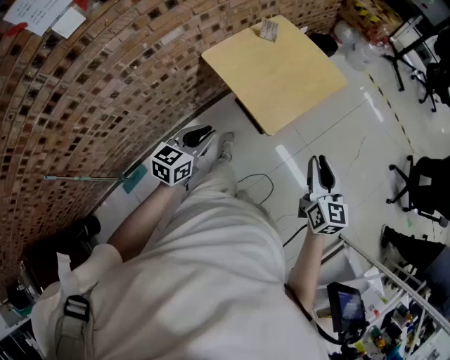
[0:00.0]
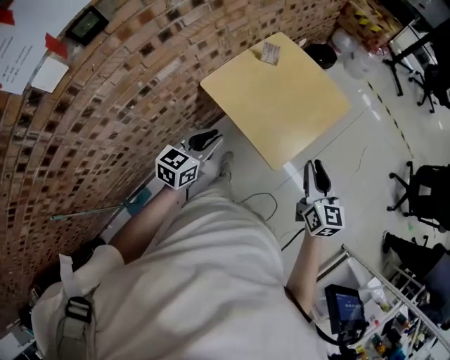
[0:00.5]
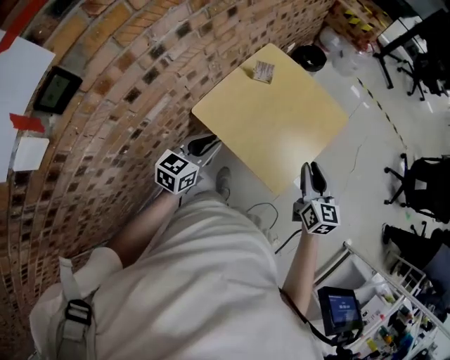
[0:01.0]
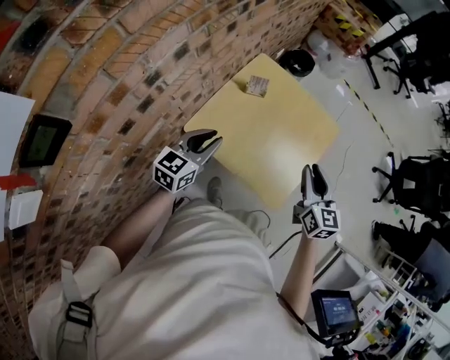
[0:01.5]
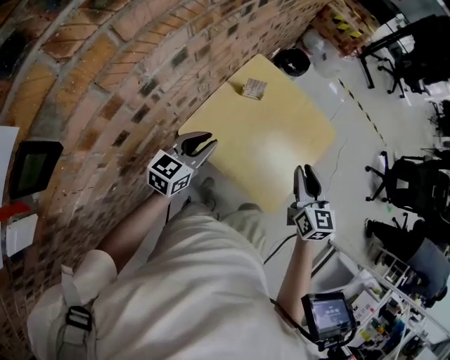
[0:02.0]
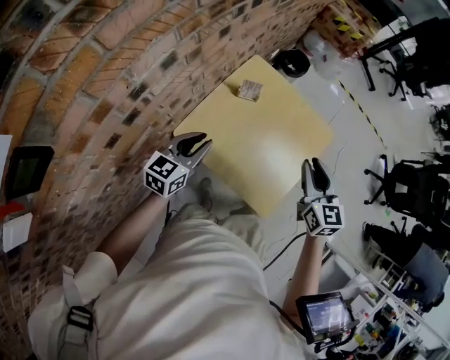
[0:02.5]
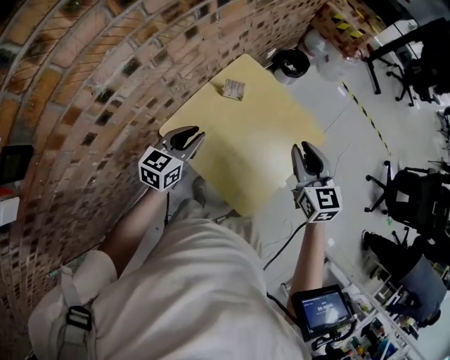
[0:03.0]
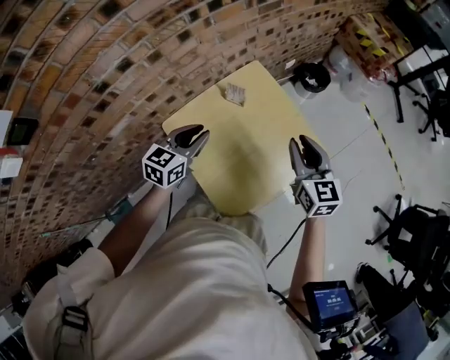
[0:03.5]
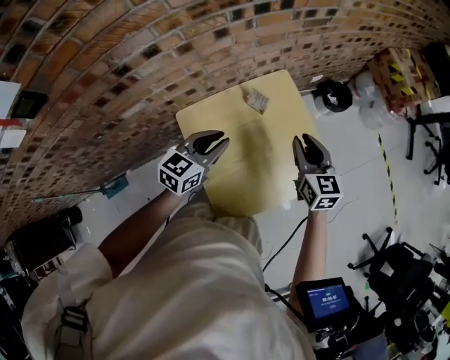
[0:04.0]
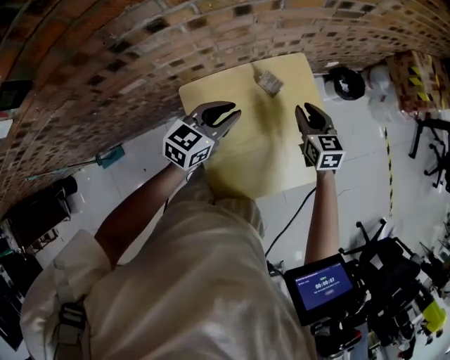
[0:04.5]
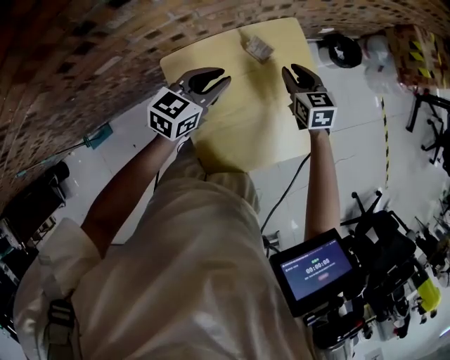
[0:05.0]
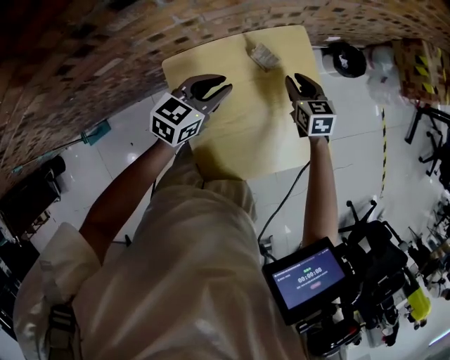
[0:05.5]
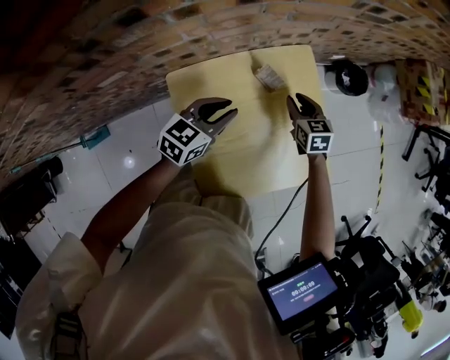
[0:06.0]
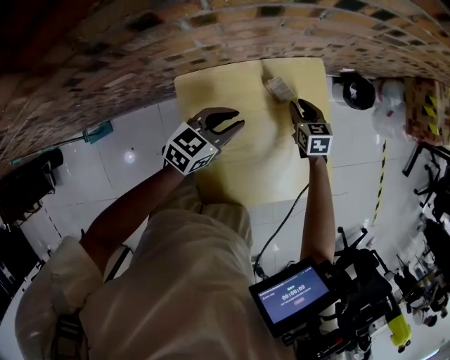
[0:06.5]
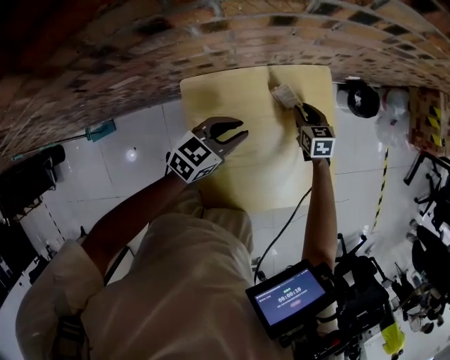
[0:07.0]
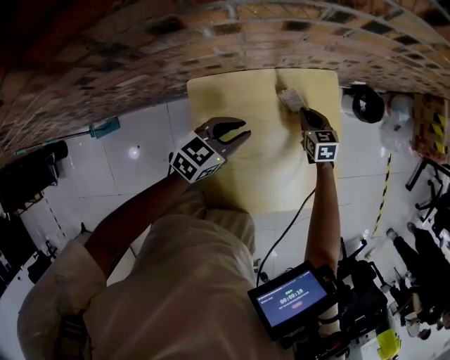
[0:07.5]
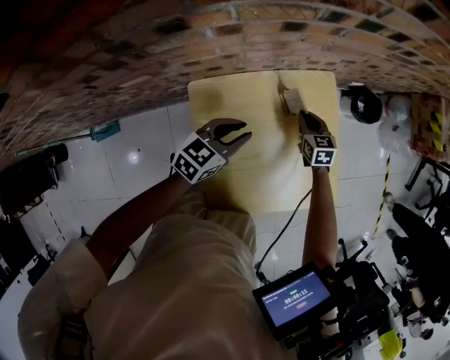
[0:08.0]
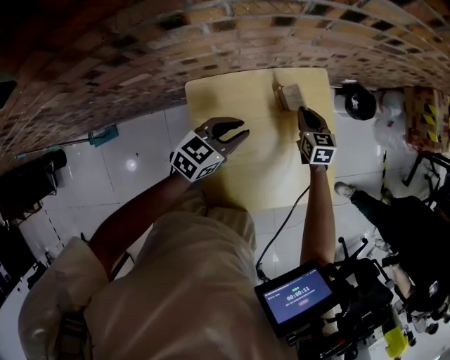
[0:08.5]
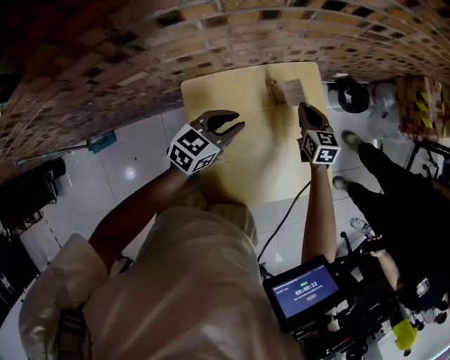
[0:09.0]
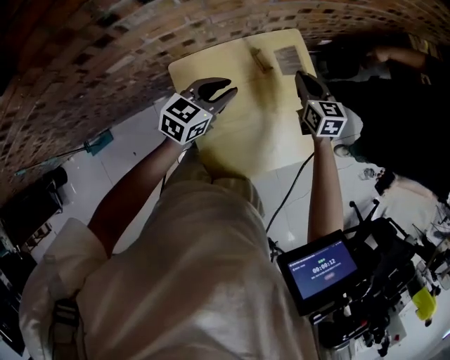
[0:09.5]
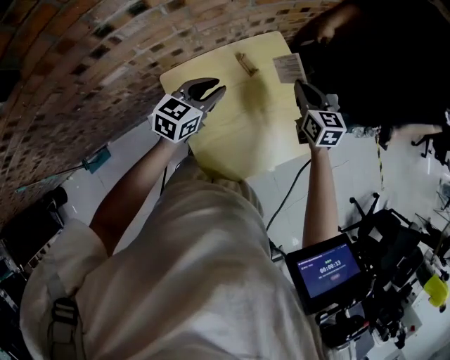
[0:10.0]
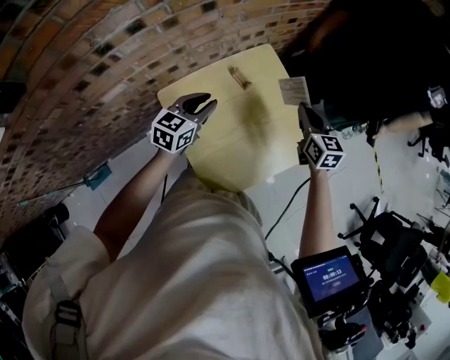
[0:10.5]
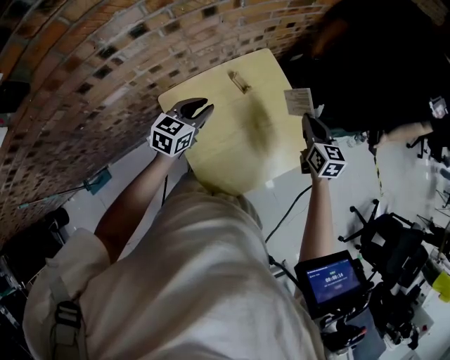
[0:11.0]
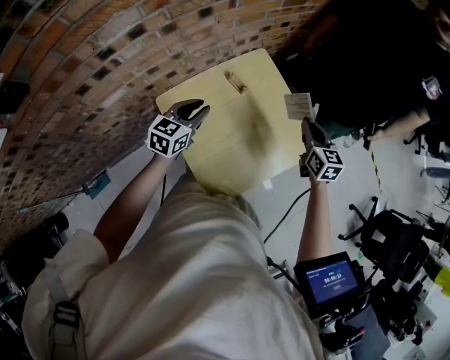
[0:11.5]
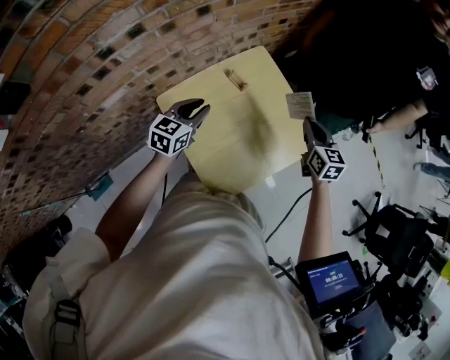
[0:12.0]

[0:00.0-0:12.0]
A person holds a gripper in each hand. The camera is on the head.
0:00.0 to 0:02.0: Both grippers move forward and to the left, roughly 40 cm.
0:02.0 to 0:04.0: The left gripper shifts by some 15 cm, and swivels roughly 30 degrees; the right gripper changes place by some 25 cm, and rotates approximately 40 degrees.
0:04.0 to 0:06.0: The right gripper is displaced downward and forward by roughly 25 cm, and changes its angle by approximately 20 degrees. The left gripper is displaced downward and forward by some 10 cm.
0:06.0 to 0:08.0: The right gripper goes roughly 5 cm downward, and closes up.
0:08.0 to 0:10.0: The left gripper travels upward by some 10 cm, while the right gripper shifts roughly 25 cm upward, to the right and backward, and turns by approximately 20 degrees.
0:10.0 to 0:12.0: The right gripper is displaced to the right and backward by about 10 cm.

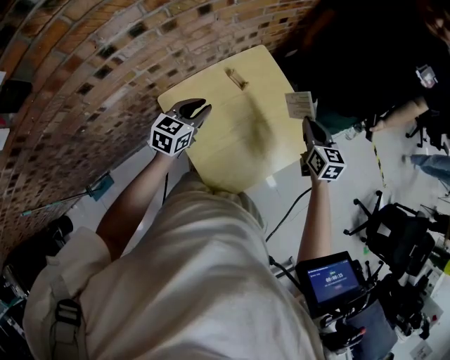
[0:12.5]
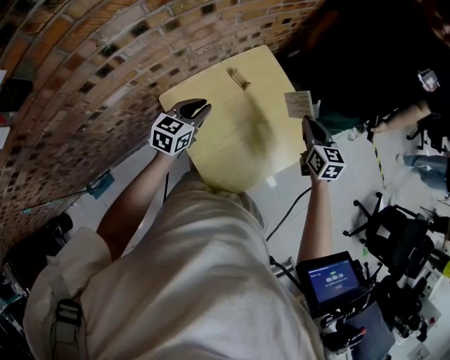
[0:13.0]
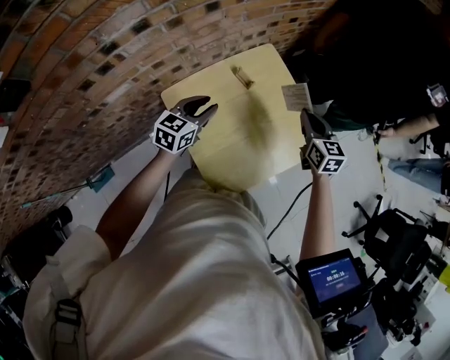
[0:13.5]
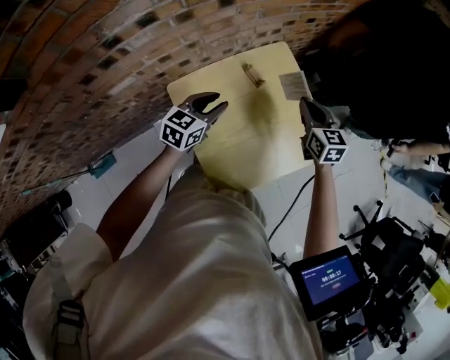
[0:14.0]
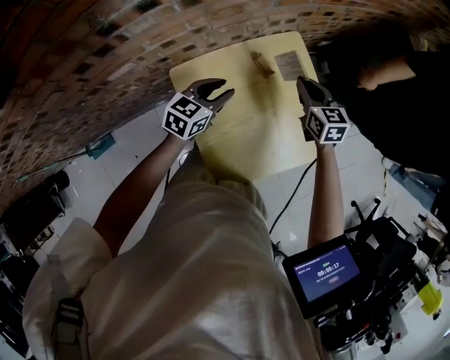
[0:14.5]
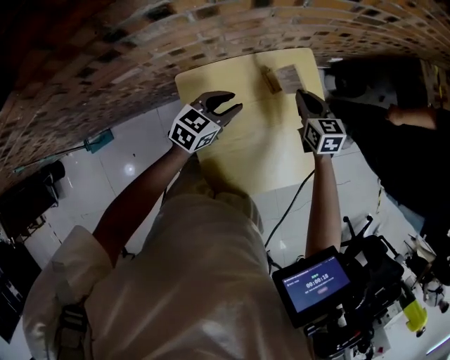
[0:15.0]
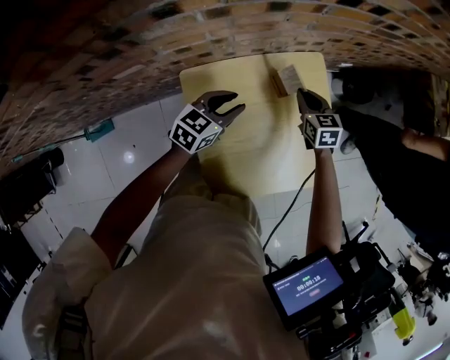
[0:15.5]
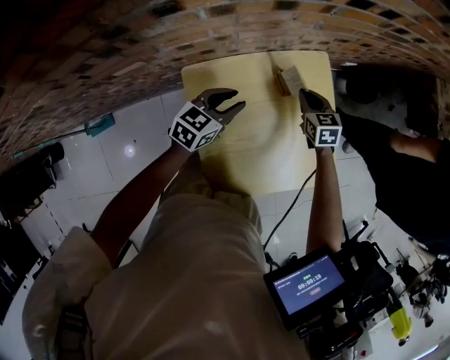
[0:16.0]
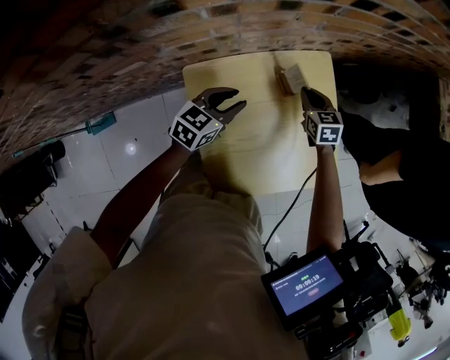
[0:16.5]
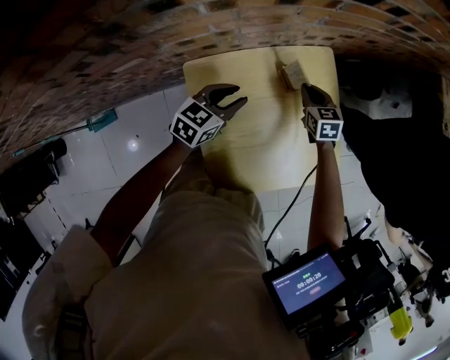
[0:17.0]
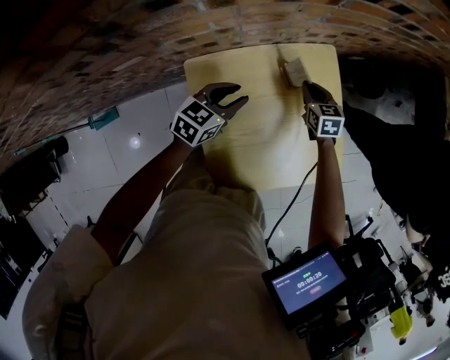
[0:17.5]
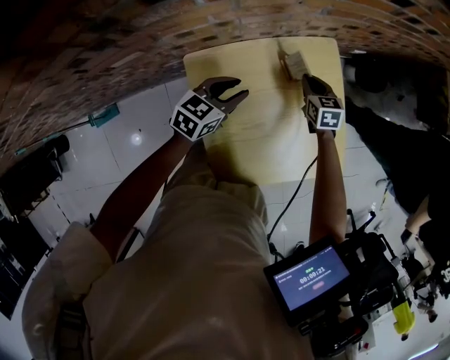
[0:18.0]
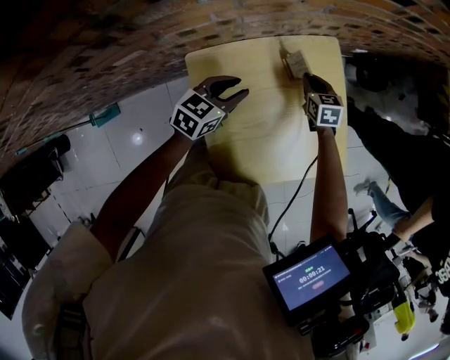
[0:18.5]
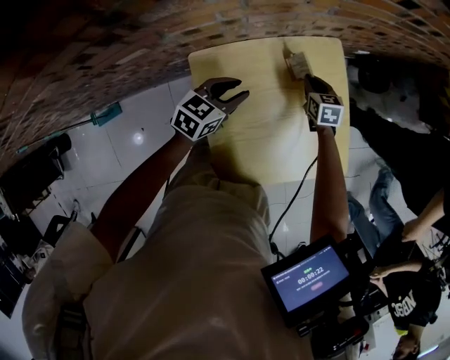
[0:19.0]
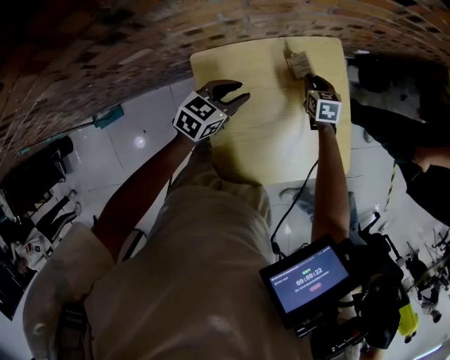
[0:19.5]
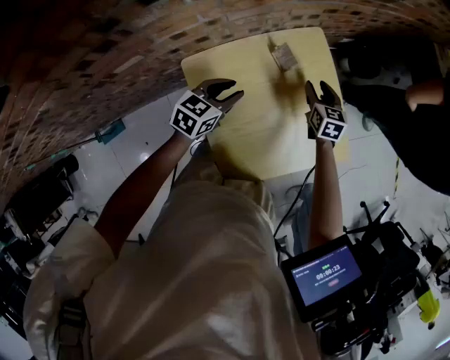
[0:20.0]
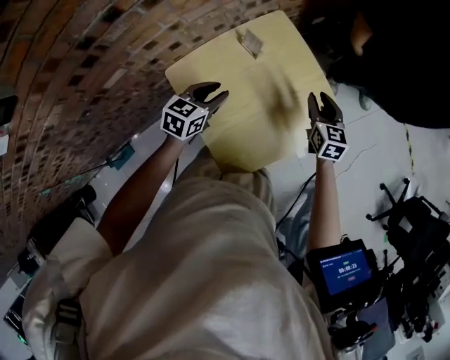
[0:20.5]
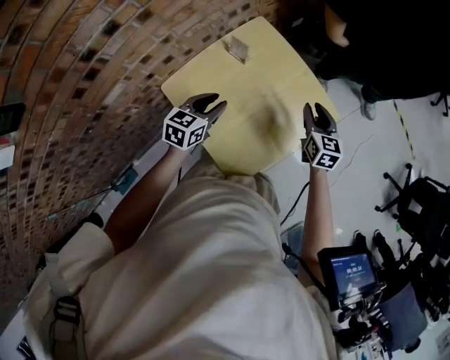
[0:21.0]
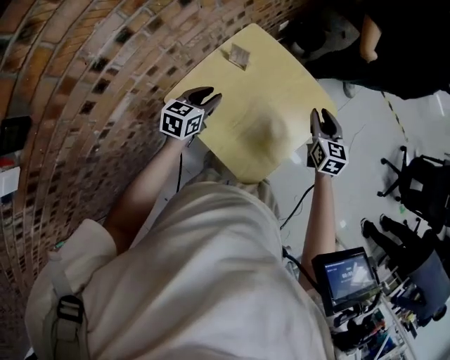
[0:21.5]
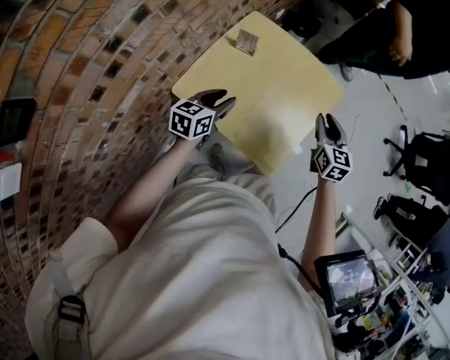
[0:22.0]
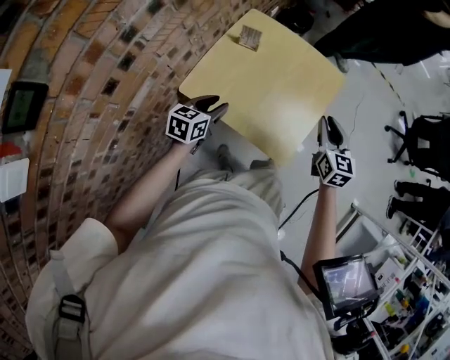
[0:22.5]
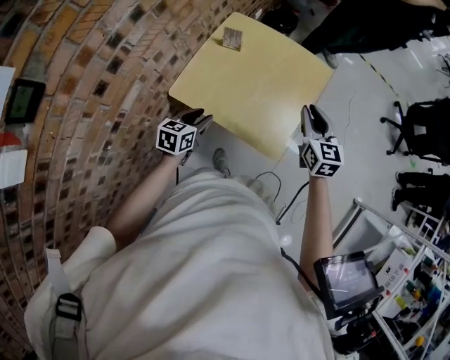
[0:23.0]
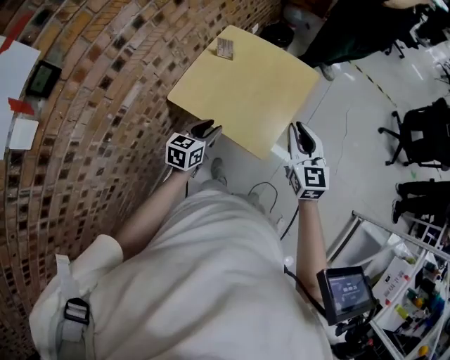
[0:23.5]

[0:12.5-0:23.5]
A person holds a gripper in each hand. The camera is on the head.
0:12.5 to 0:14.5: The right gripper is displaced to the left and forward by about 20 cm, and rotates roughly 20 degrees. Meanwhile the left gripper ends up some 5 cm from where it was.
0:14.5 to 0:16.0: The right gripper shifts some 10 cm downward.
0:16.0 to 0:18.0: The grippers stay close to where they were, moving slightly.
0:18.0 to 0:20.0: The right gripper heads to the right, covering roughly 5 cm, and opens.
0:20.0 to 0:21.5: The left gripper moves upward, some 5 cm, and travels to the right and back again, approximately 10 cm each way; the right gripper moves backward, to the right and upward, some 30 cm, and changes its angle by some 30 degrees.
0:21.5 to 0:23.5: Both grippers move backward, roughly 25 cm.

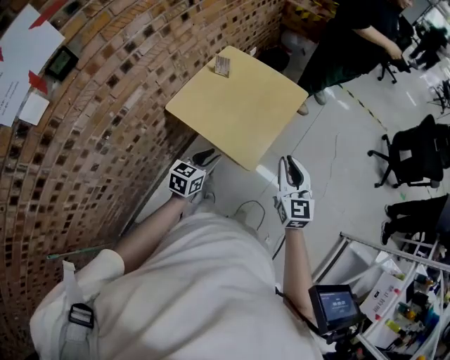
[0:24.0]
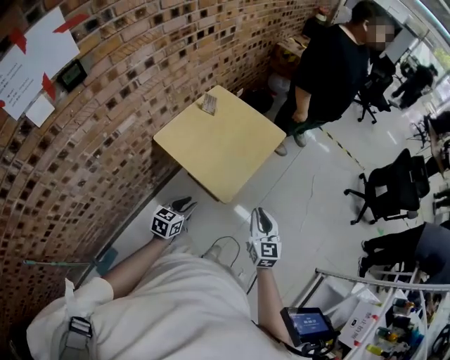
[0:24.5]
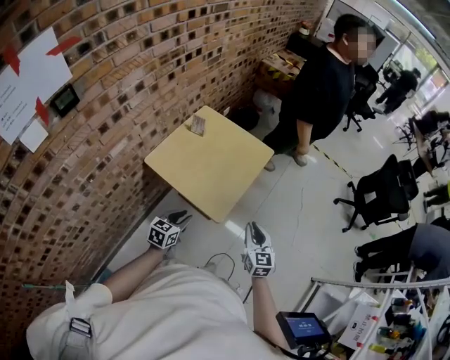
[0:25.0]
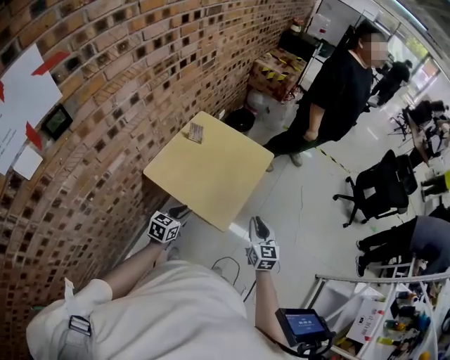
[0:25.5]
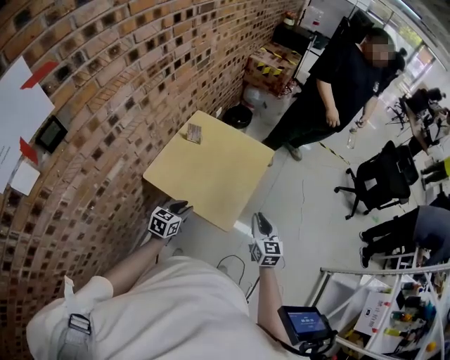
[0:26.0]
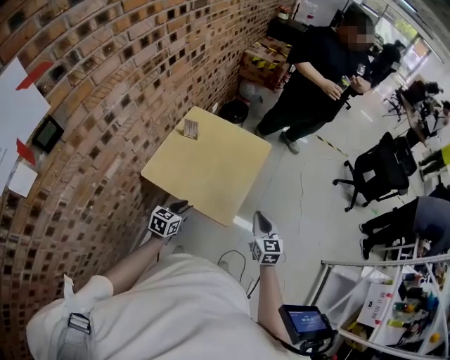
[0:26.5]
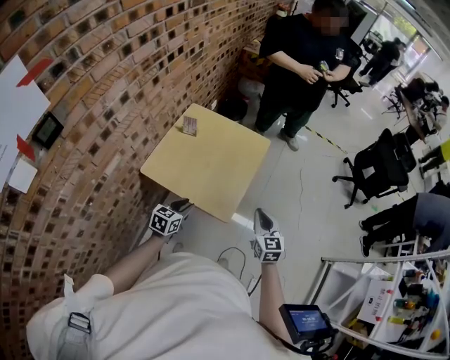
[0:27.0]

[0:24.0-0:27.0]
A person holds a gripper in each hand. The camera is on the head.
0:24.0 to 0:25.5: The left gripper reaches some 5 cm backward, then returns, while the right gripper travels downward by roughly 5 cm, and moves approximately 5 cm backward and comes back.
0:25.5 to 0:27.0: The grippers move only a little.

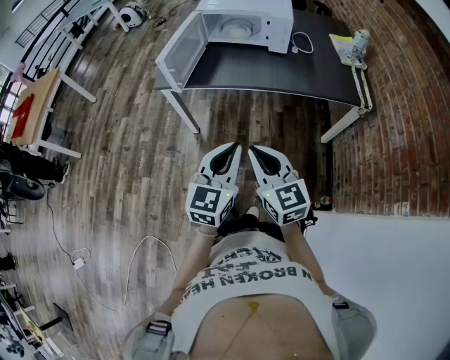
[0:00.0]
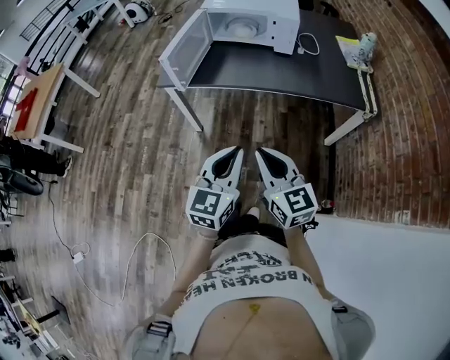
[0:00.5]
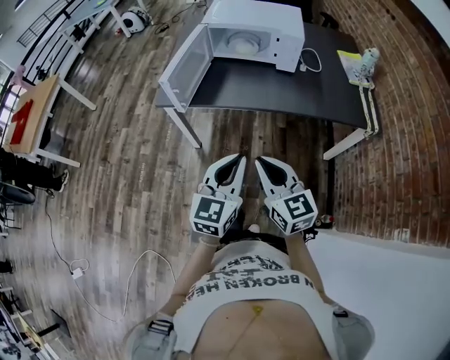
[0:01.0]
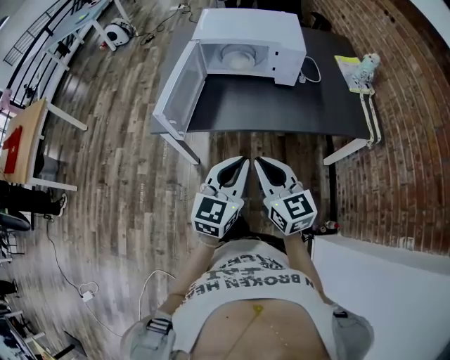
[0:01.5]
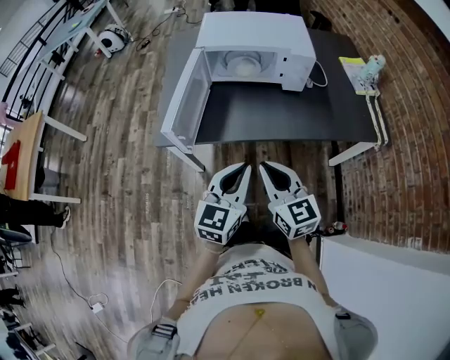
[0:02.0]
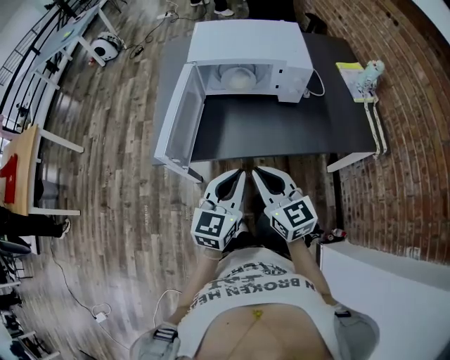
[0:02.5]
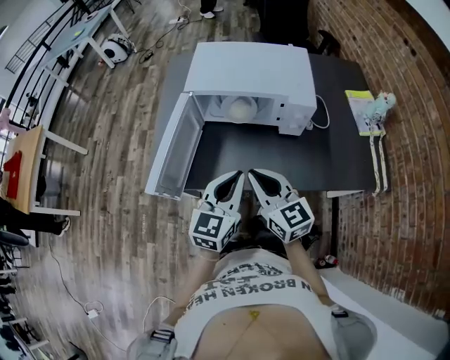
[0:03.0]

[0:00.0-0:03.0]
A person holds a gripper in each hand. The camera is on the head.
0:00.0 to 0:01.5: Both grippers move forward, some 20 cm.
0:01.5 to 0:03.0: The grippers both shift forward by about 20 cm.
